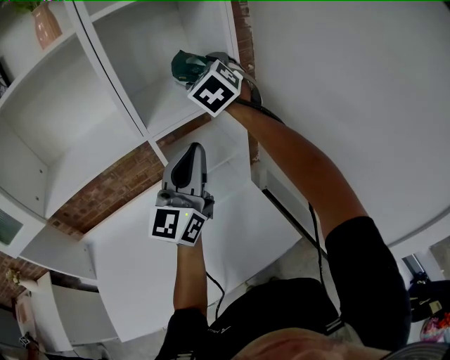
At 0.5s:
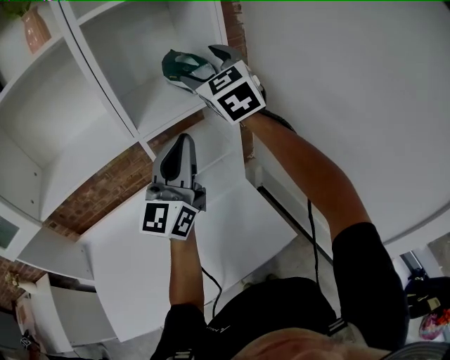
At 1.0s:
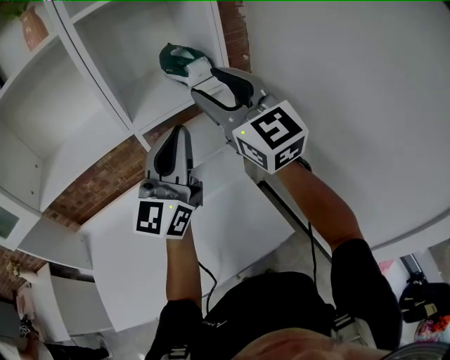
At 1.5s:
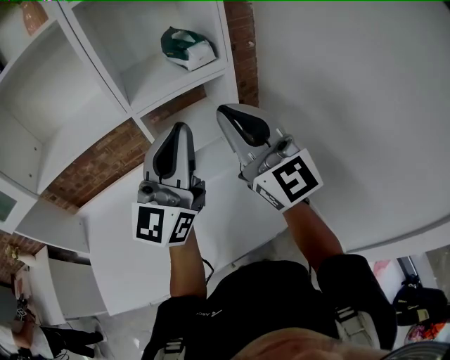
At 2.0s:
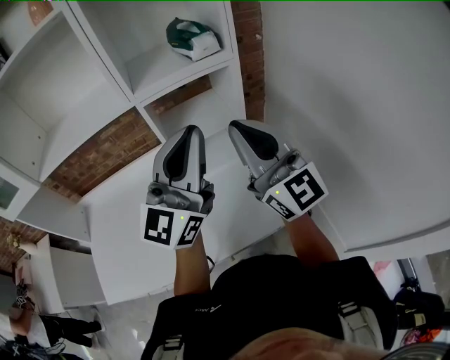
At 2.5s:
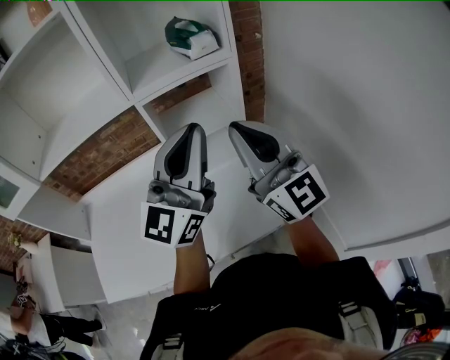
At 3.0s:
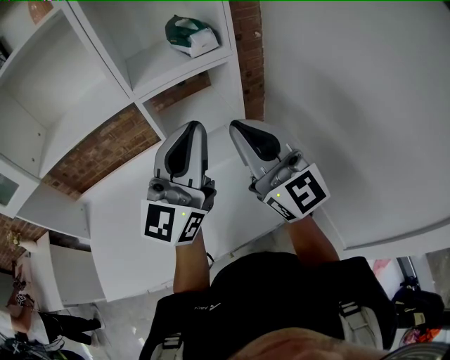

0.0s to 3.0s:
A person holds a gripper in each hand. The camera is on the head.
0.0s to 1.5s: The left gripper shifts by about 5 cm. The right gripper shifts about 25 cm backward, tips its fingers upward by some 30 degrees, and closes its fingers.
1.5s to 3.0s: The right gripper shifts by approximately 5 cm.

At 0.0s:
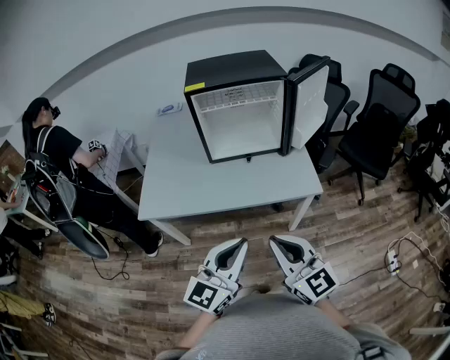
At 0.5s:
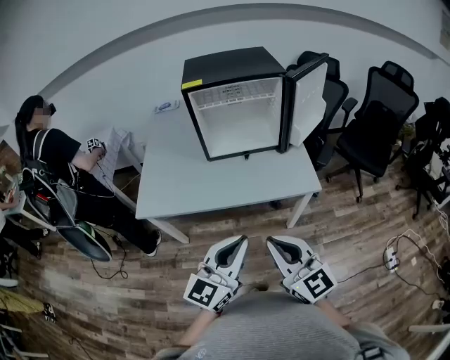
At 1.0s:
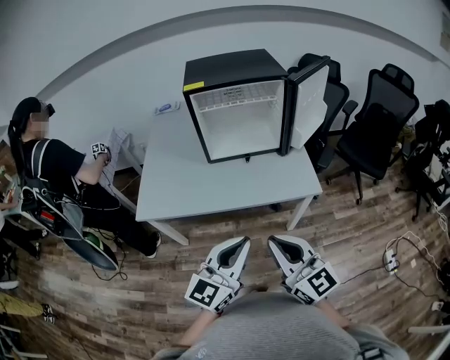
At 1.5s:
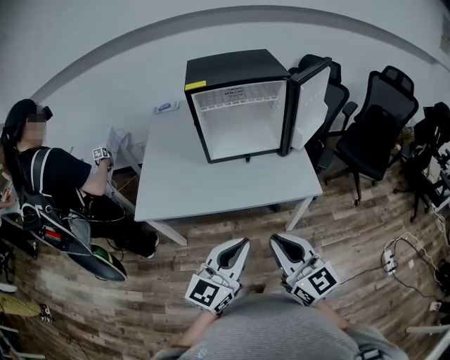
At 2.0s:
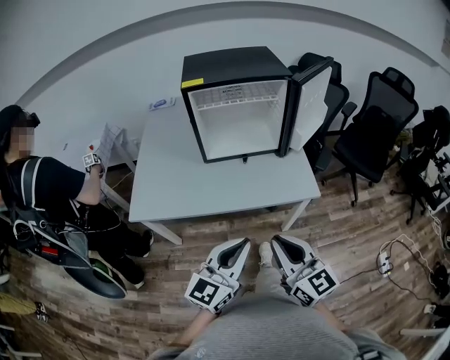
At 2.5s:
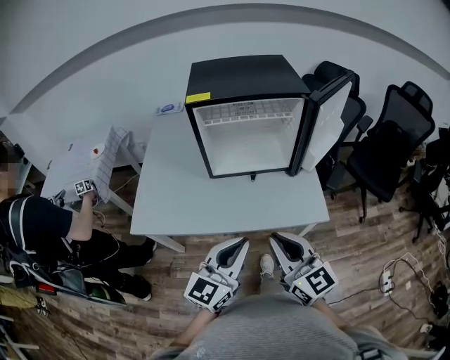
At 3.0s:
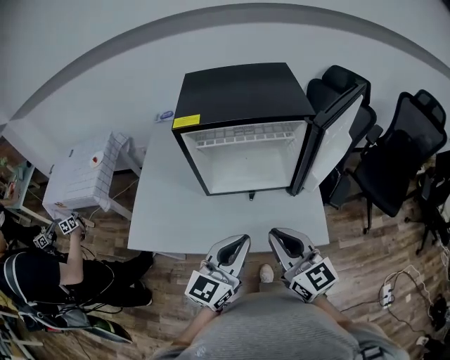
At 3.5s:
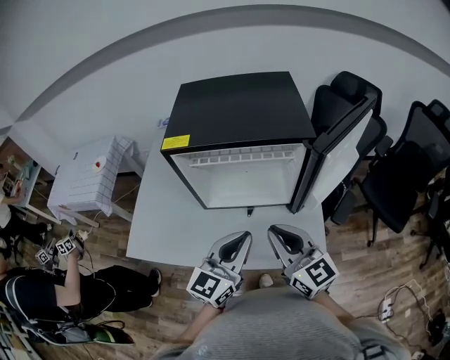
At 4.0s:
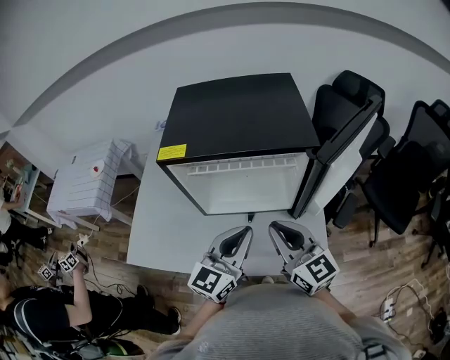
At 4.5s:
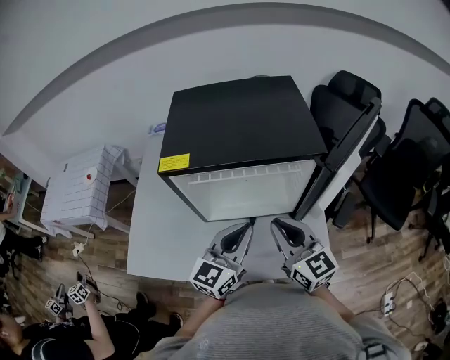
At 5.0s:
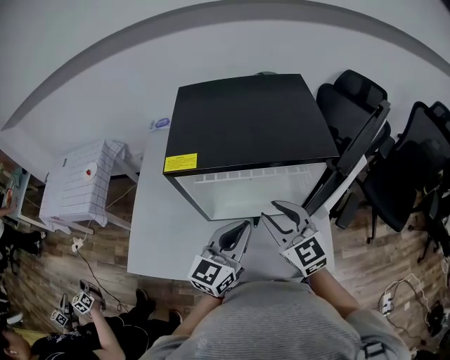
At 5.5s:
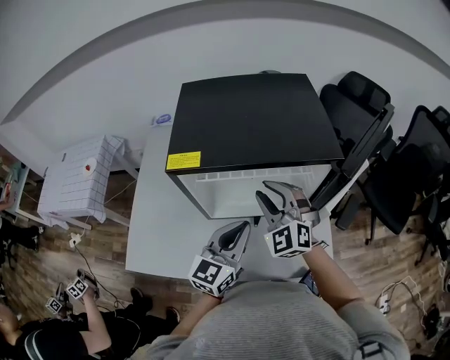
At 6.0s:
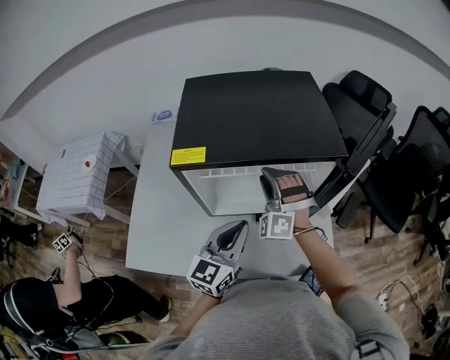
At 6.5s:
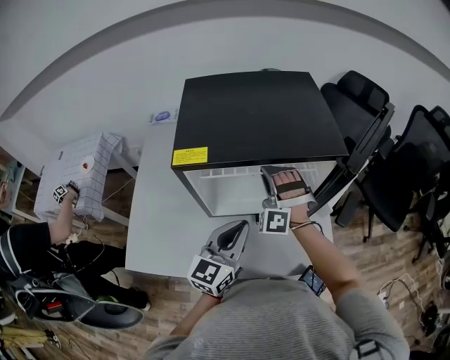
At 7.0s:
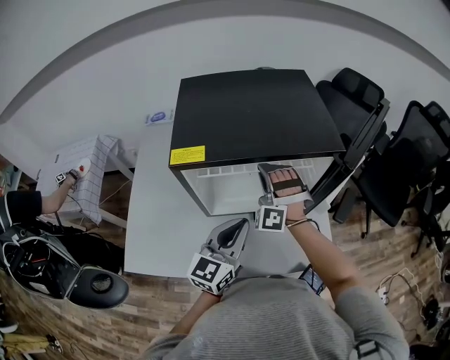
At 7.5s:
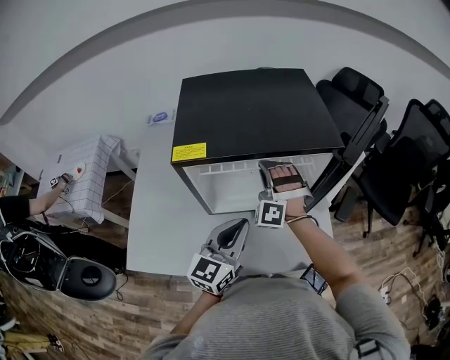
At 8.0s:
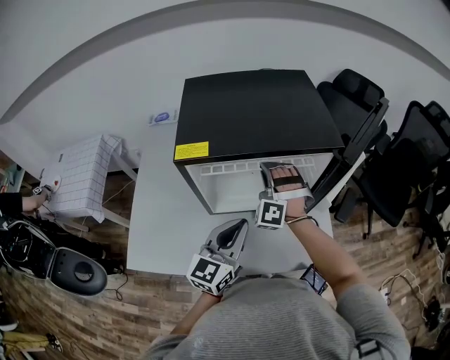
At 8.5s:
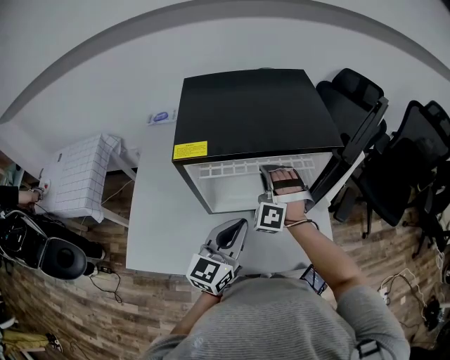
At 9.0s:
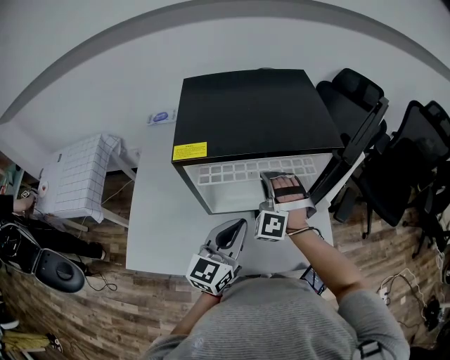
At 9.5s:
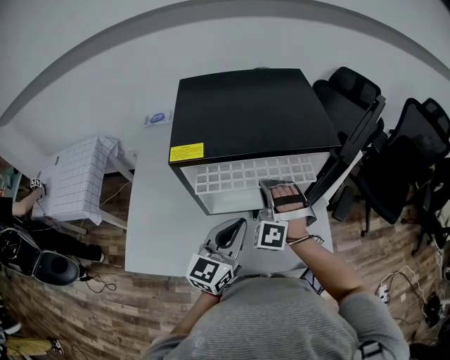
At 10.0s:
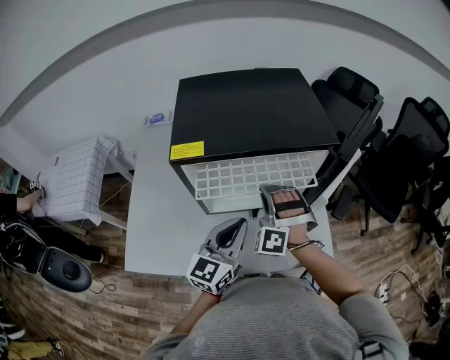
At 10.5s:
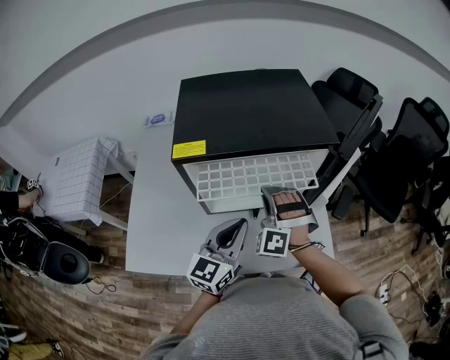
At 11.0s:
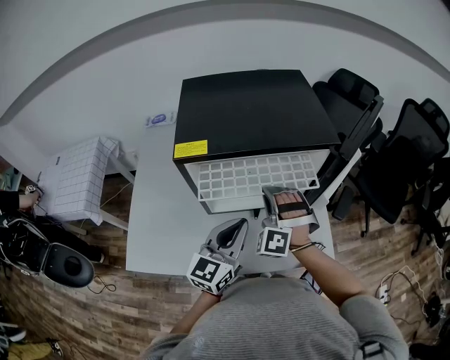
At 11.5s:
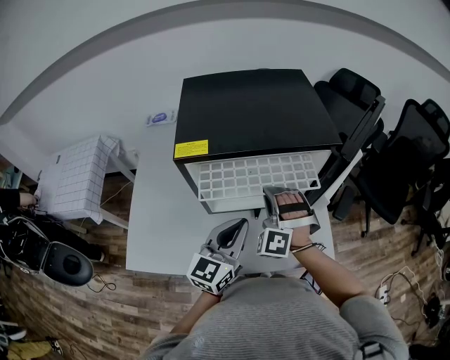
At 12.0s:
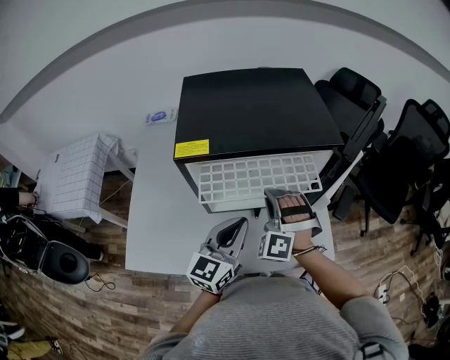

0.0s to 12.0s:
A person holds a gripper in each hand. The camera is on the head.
0.0s to 2.0s: The right gripper ends up about 5 cm from where it was; the left gripper ends up about 5 cm from where it was.
2.0s to 4.0s: The two grippers go some 35 cm forward.
4.0s to 6.0s: The left gripper is displaced to the left by roughly 5 cm. Meanwhile the right gripper heads forward and to the left, covering about 20 cm, twists approximately 80 degrees counterclockwise, seen from behind, and opens up.
6.0s to 8.0s: The right gripper closes up.
8.0s to 10.0s: The right gripper is displaced backward by roughly 5 cm.
10.0s to 12.0s: The two grippers keep their place.

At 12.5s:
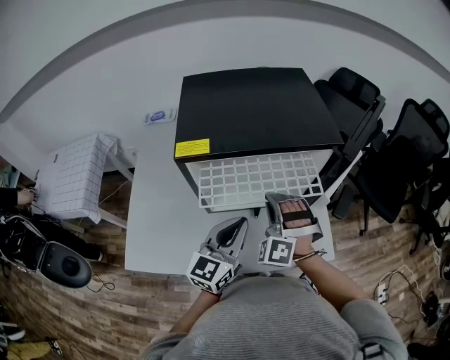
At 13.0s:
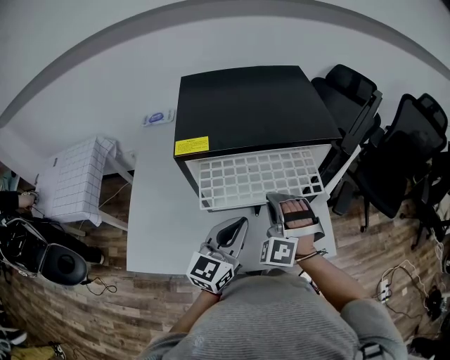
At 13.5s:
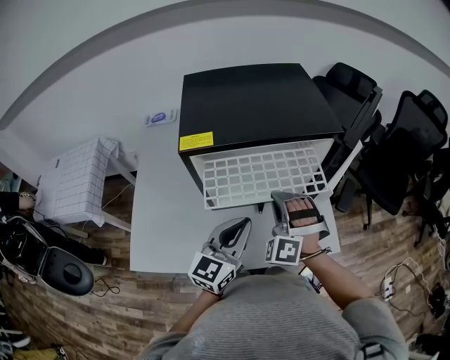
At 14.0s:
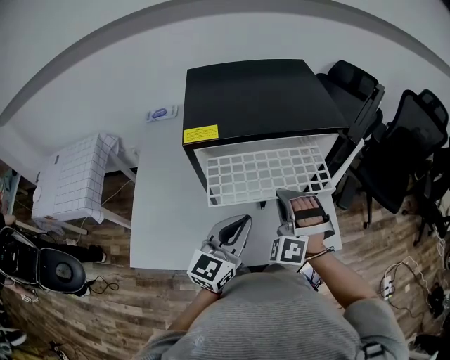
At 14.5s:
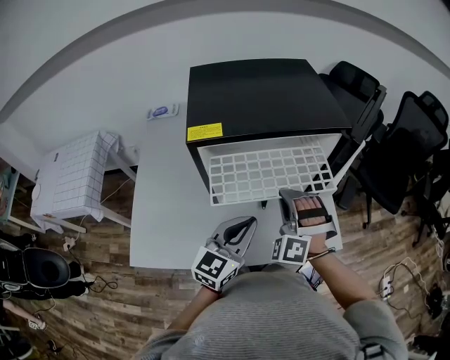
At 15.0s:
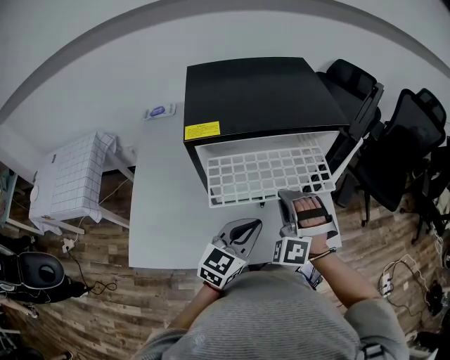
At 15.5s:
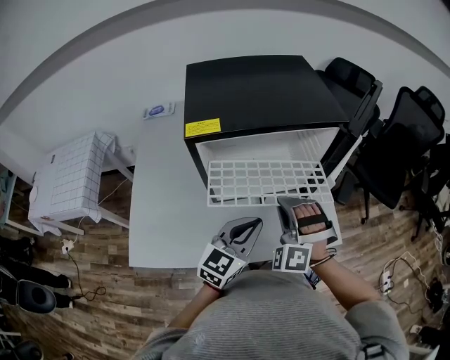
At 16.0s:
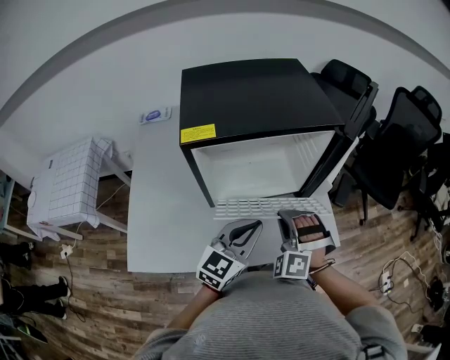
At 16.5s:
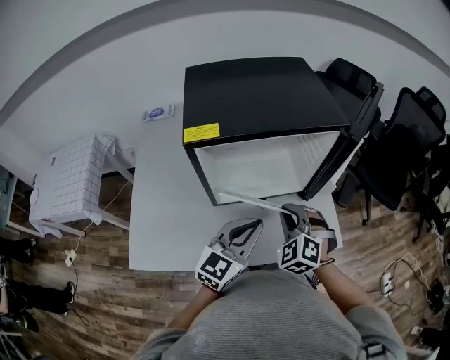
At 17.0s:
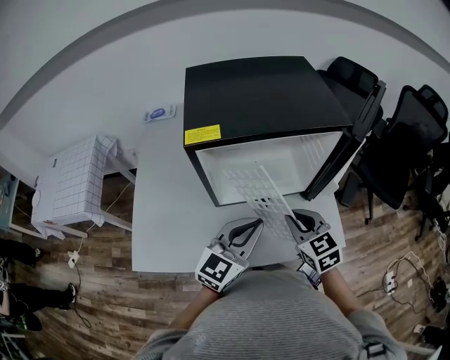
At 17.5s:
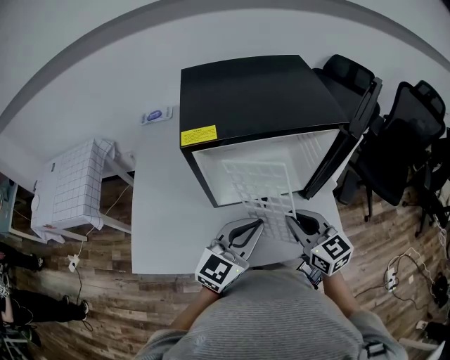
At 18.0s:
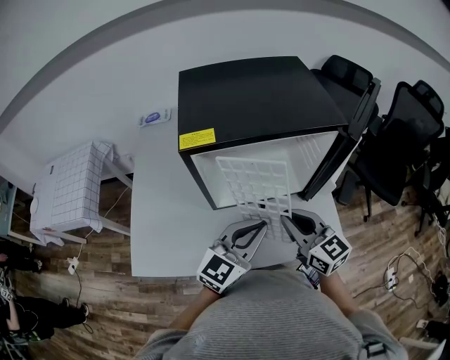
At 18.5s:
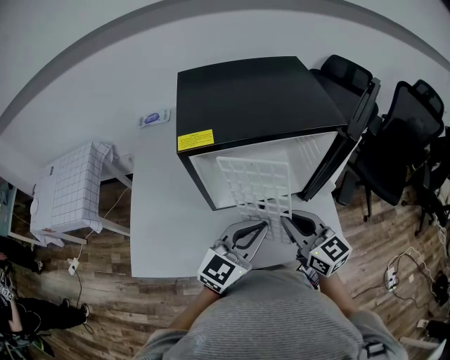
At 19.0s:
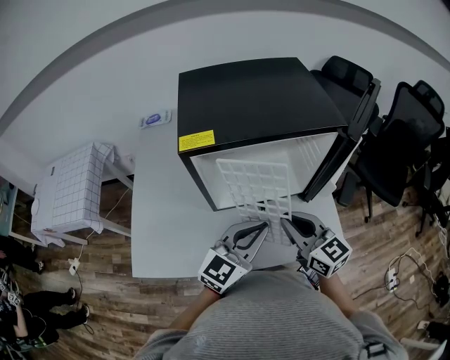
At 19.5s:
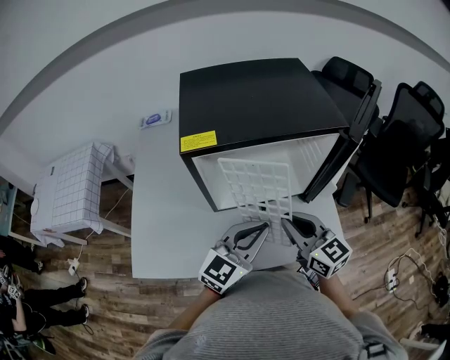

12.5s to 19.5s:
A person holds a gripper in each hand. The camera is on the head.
12.5s to 14.5s: The grippers stay close to where they were, moving slightly.
14.5s to 16.0s: The right gripper moves approximately 5 cm.
16.0s to 17.5s: The right gripper twists approximately 70 degrees clockwise, seen from behind.
17.5s to 19.5s: The grippers move only a little.

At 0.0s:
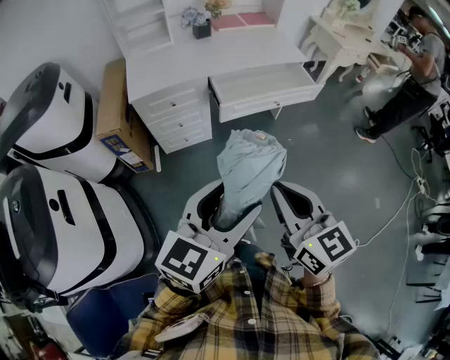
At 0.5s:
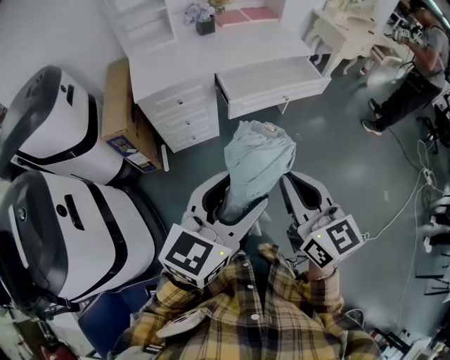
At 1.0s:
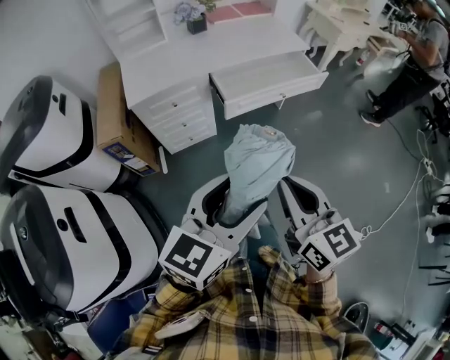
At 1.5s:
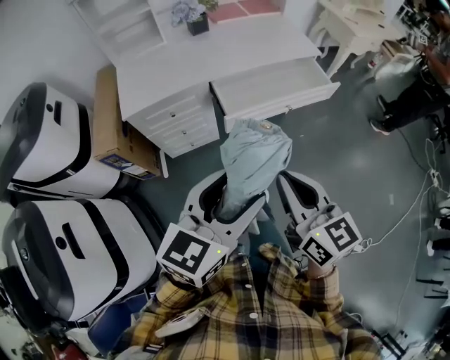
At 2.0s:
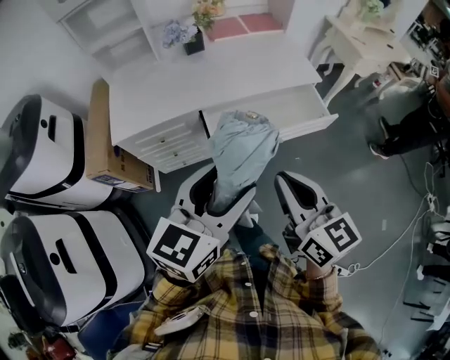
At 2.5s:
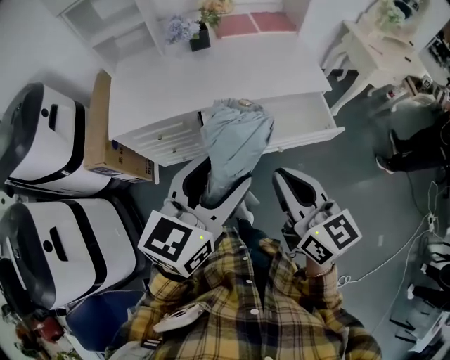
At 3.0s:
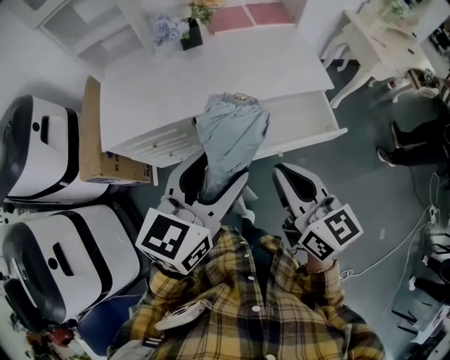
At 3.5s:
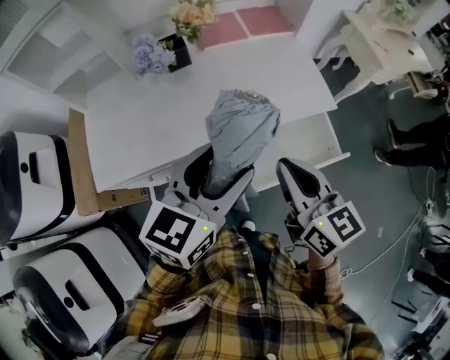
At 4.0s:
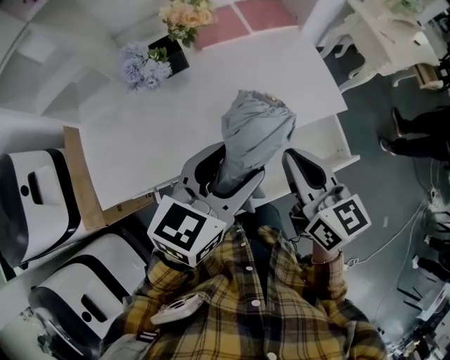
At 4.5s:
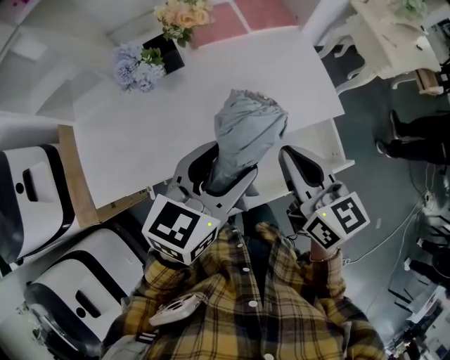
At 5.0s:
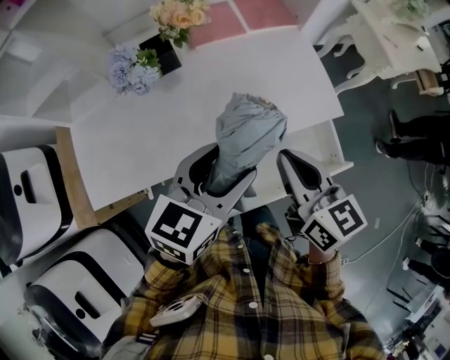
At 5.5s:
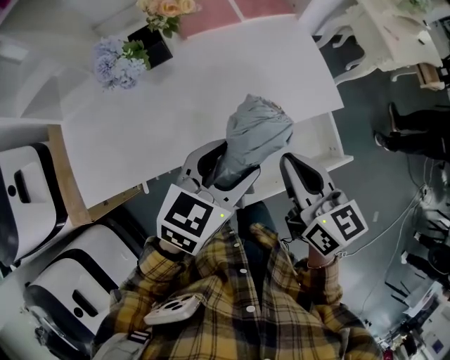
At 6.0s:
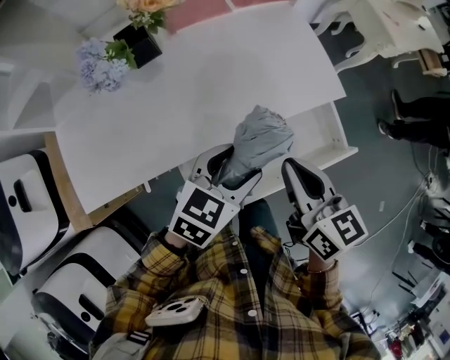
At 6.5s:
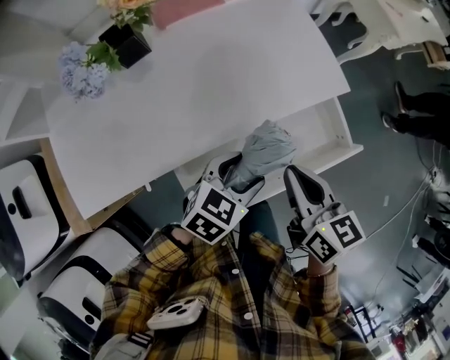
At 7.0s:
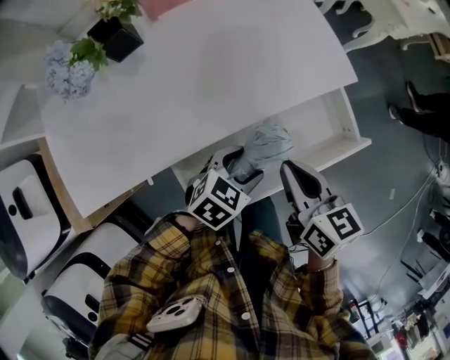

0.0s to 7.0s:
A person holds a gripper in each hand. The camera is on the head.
0.0s to 2.0s: Both grippers move forward, approximately 25 cm.
2.0s to 3.5s: Both grippers travel together forward, some 25 cm.
3.5s to 5.0s: The right gripper travels forward by about 10 cm, while the left gripper heads forward and downward, covering some 10 cm.
5.0s to 7.0s: The right gripper is displaced downward and to the right by roughly 15 cm. The left gripper moves downward, approximately 25 cm, and turns by some 40 degrees.
